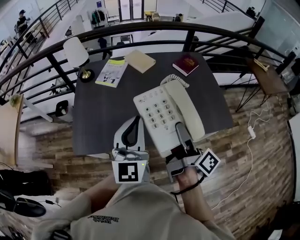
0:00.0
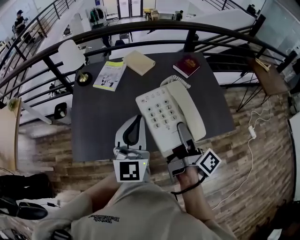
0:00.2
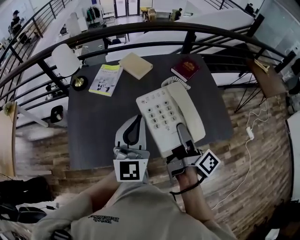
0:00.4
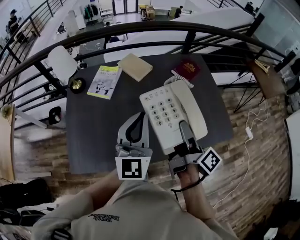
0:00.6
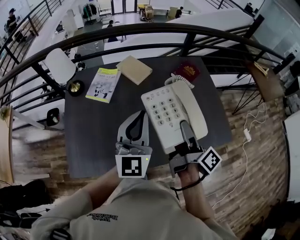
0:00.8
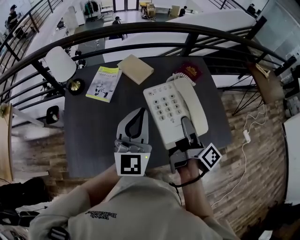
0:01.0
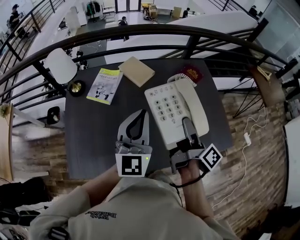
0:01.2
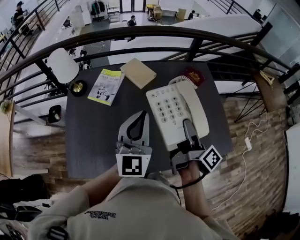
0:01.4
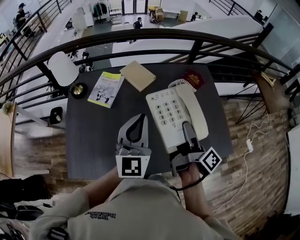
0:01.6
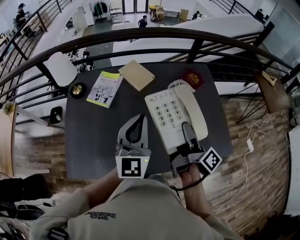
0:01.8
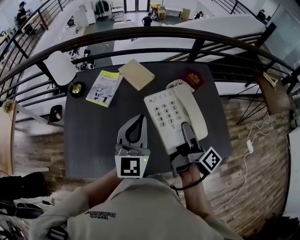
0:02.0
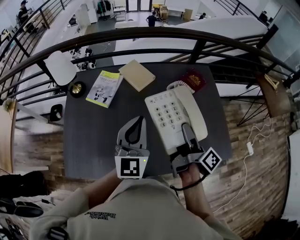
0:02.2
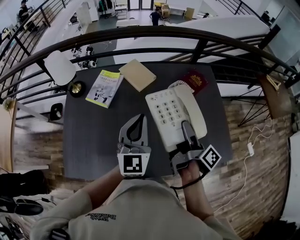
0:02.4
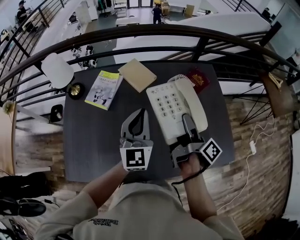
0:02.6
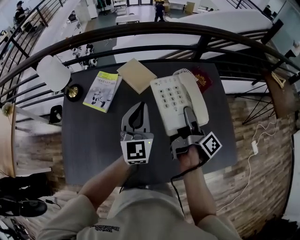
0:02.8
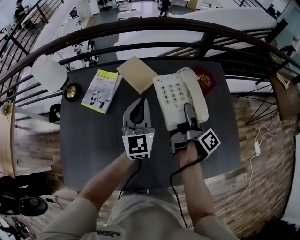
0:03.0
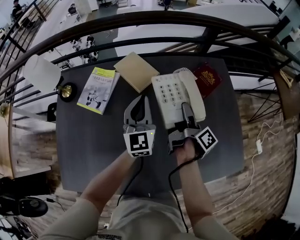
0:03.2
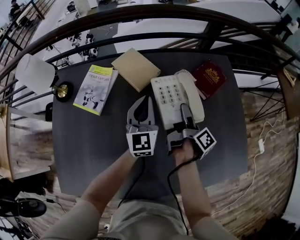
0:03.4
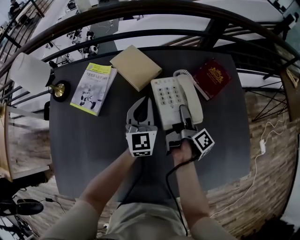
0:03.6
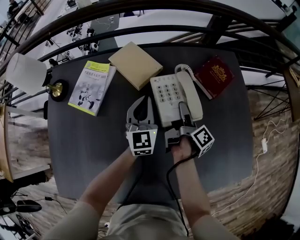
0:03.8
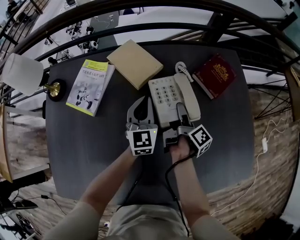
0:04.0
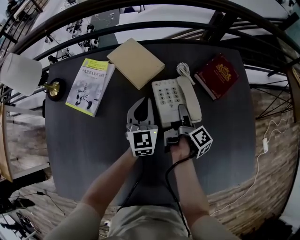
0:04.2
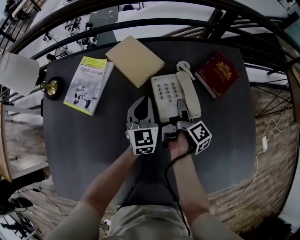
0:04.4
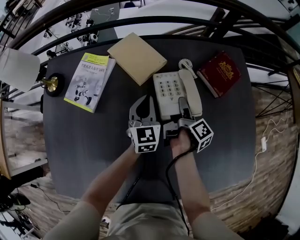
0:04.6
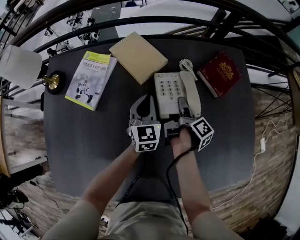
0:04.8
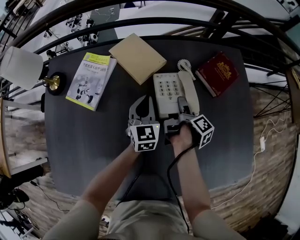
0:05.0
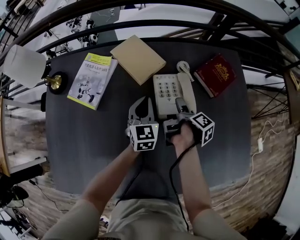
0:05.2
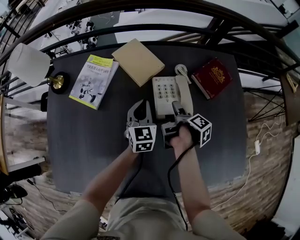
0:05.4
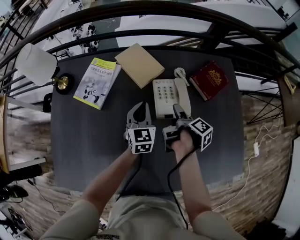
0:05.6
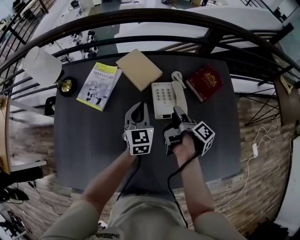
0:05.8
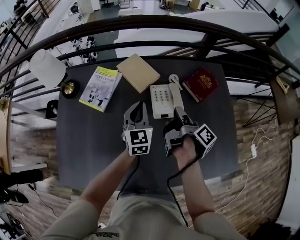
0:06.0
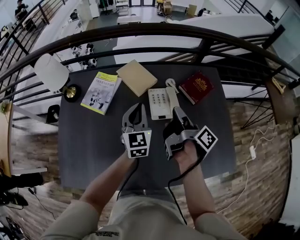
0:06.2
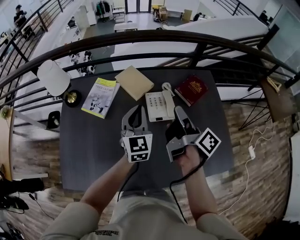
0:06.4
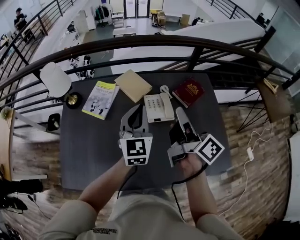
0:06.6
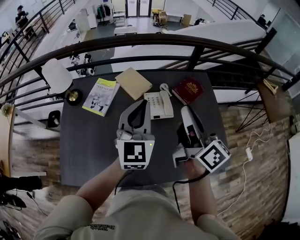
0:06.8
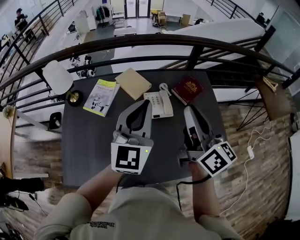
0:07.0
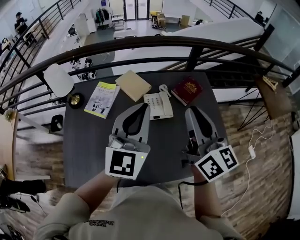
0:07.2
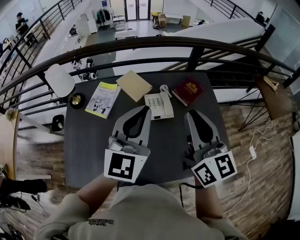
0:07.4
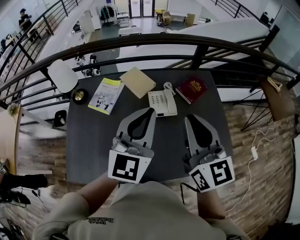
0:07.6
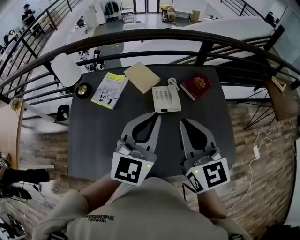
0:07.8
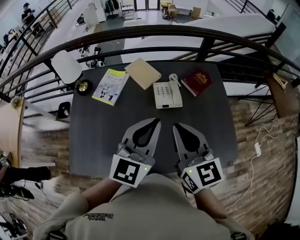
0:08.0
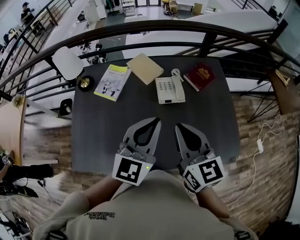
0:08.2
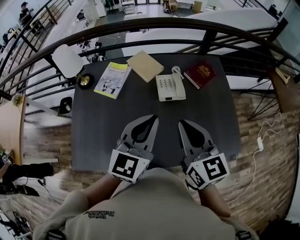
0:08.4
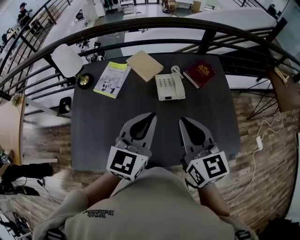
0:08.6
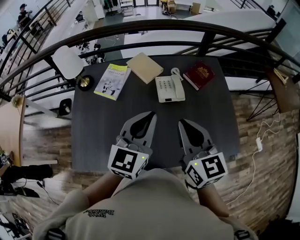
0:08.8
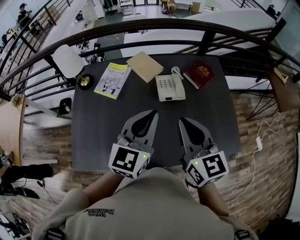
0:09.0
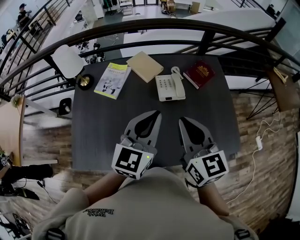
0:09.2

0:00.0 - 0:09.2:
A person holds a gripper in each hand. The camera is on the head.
0:00.0 - 0:01.6: The left gripper ends up roughly 25 cm from where it was.
0:01.6 - 0:03.0: The left gripper ends up roughly 20 cm from where it was.
0:03.0 - 0:04.6: The left gripper travels downward by about 25 cm.
0:04.6 - 0:06.2: The left gripper moves upward, about 20 cm.
0:06.2 - 0:07.6: The left gripper goes approximately 25 cm upward, and changes its angle by approximately 30 degrees.
0:07.6 - 0:09.2: The left gripper travels downward by roughly 10 cm.

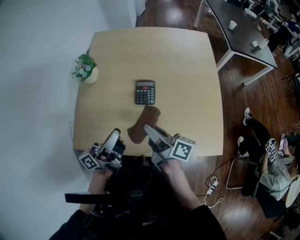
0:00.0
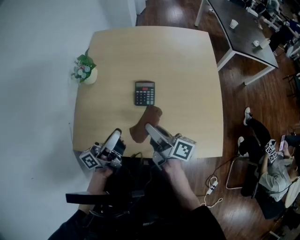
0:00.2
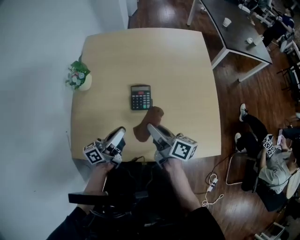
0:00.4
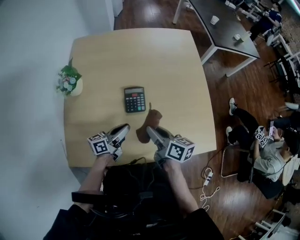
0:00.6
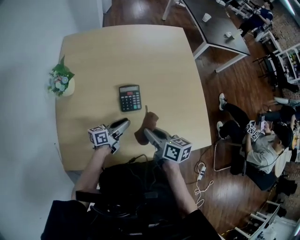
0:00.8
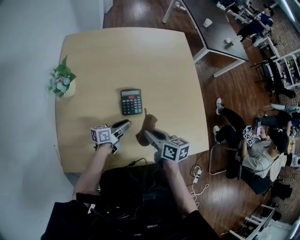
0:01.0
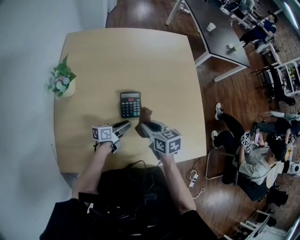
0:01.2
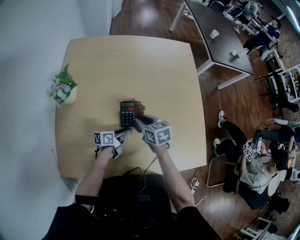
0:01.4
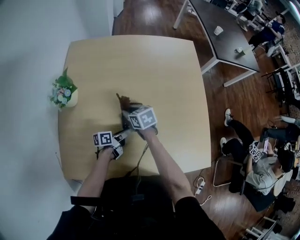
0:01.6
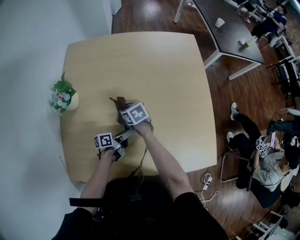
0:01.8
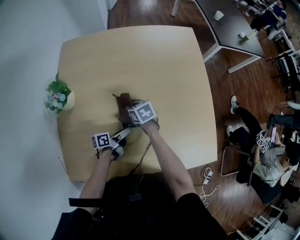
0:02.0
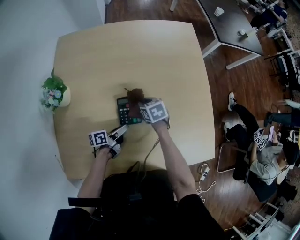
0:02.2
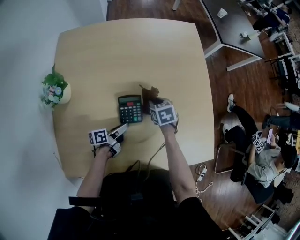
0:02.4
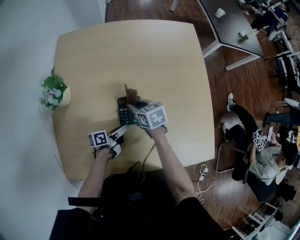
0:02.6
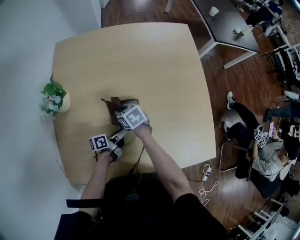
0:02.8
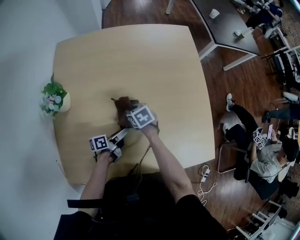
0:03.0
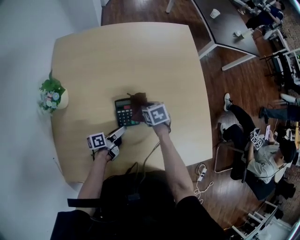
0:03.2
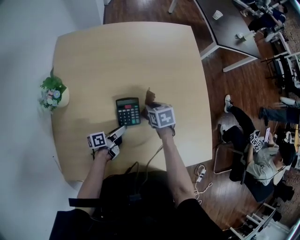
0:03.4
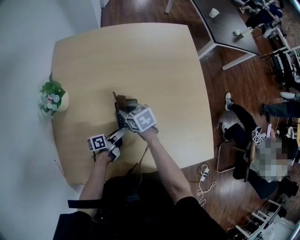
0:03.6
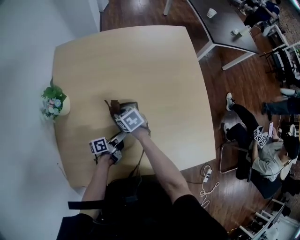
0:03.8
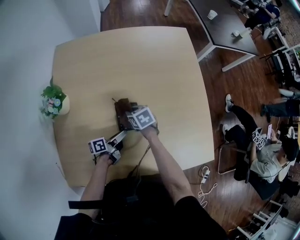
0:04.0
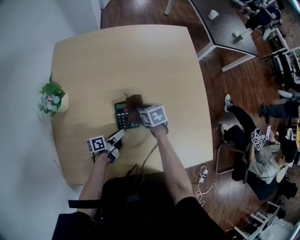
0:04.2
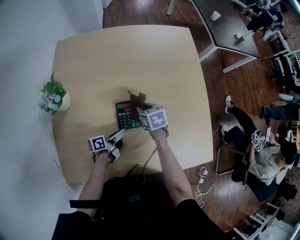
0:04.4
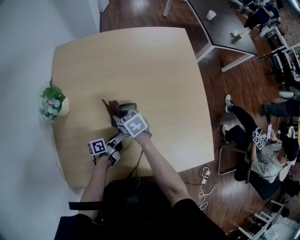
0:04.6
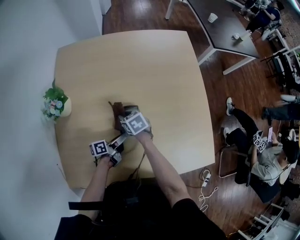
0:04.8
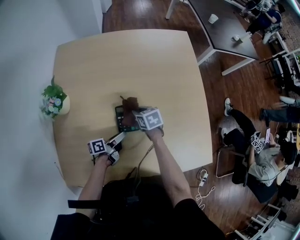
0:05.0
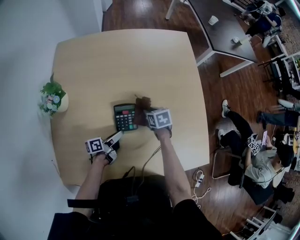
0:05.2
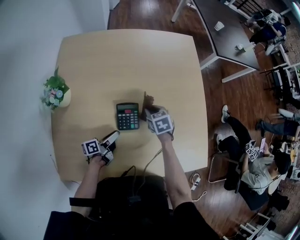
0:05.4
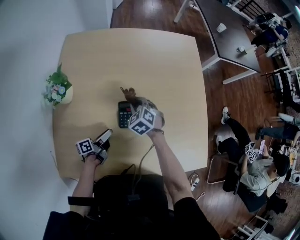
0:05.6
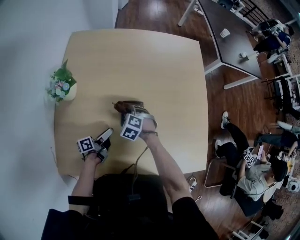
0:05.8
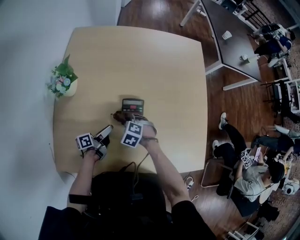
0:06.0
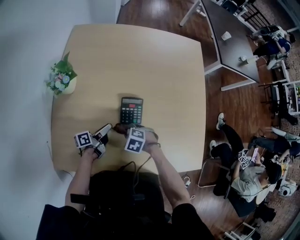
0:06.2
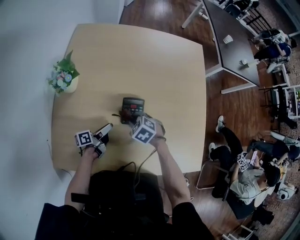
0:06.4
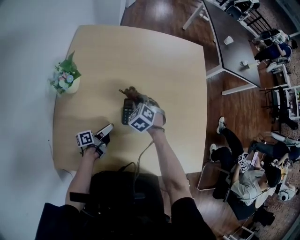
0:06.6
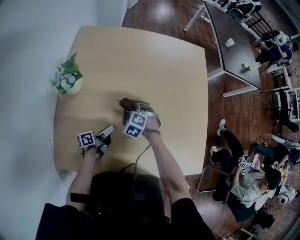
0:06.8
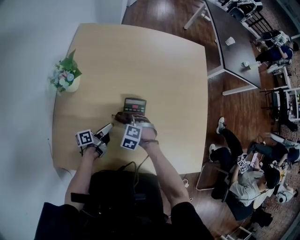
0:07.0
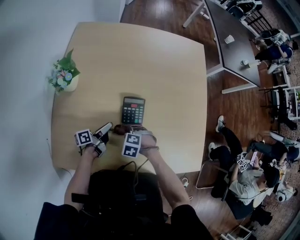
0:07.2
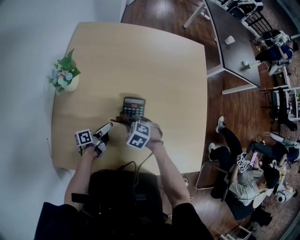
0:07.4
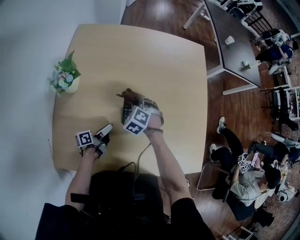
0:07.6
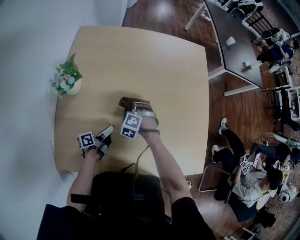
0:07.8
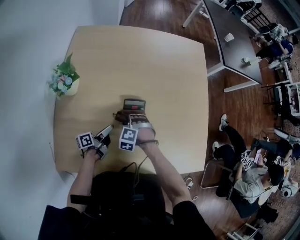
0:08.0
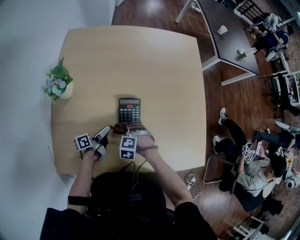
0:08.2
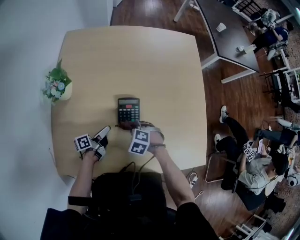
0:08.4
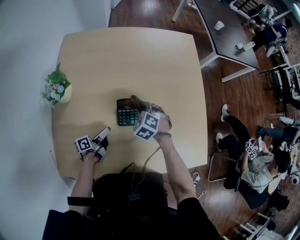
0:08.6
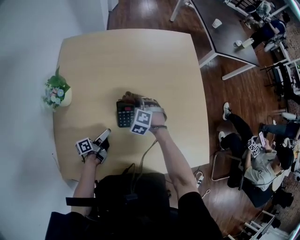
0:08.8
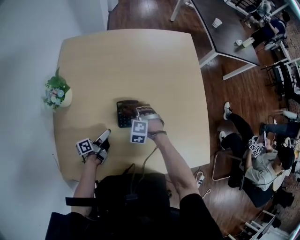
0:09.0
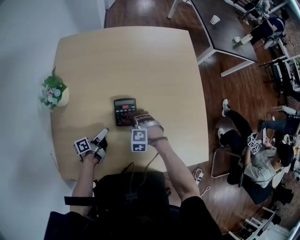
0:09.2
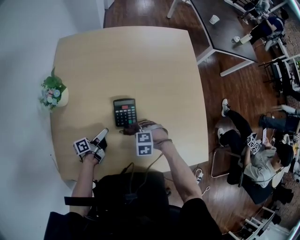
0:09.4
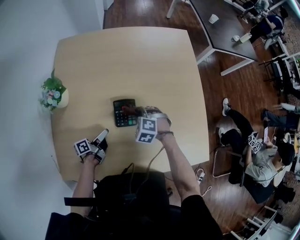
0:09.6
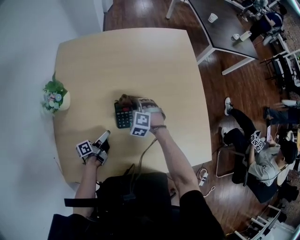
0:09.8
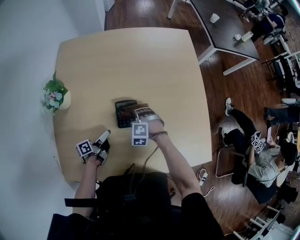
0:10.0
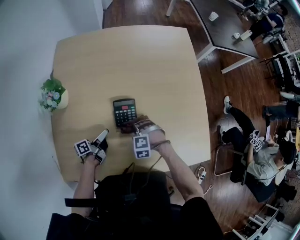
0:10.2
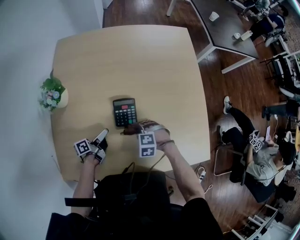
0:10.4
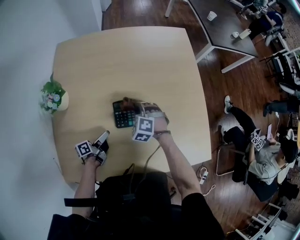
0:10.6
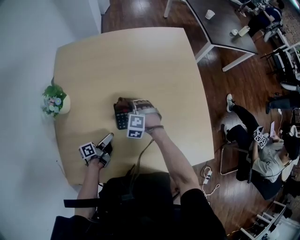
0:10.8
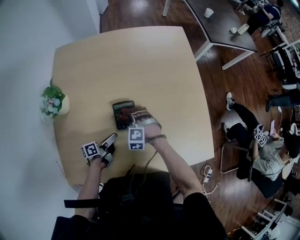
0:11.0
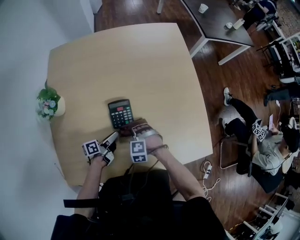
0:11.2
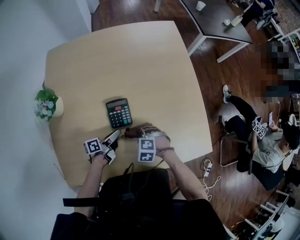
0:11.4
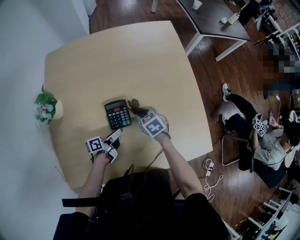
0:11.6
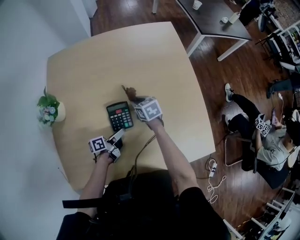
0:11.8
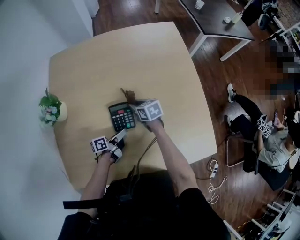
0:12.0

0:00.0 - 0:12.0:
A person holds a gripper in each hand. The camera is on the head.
0:00.0 - 0:01.6: The right gripper ends up about 30 cm from where it was, and angles its fingers downward, by roughly 40 degrees.
0:01.6 - 0:03.0: The right gripper goes up and down, roughly 5 cm each way, reversing 2 times.
0:04.4 - 0:06.0: The right gripper shifts by roughly 15 cm, and rotates around the line of its fingers by some 60 degrees, counterclockwise from behind.
0:06.0 - 0:07.6: The right gripper swings up and down, some 10 cm each way, with 2 reversals.
0:07.6 - 0:09.0: The right gripper goes up and down, about 10 cm each way, reversing 2 times.
0:09.0 - 0:10.4: The right gripper changes place by about 10 cm.
0:10.4 - 0:12.0: The right gripper goes up and down, some 5 cm each way, reversing 2 times, and twists some 80 degrees clockwise, seen from behind.

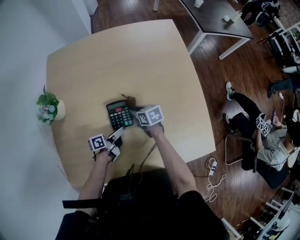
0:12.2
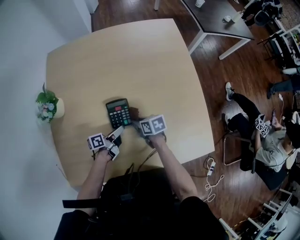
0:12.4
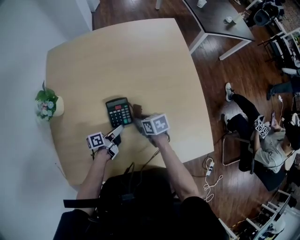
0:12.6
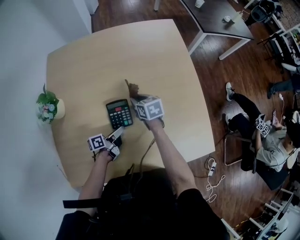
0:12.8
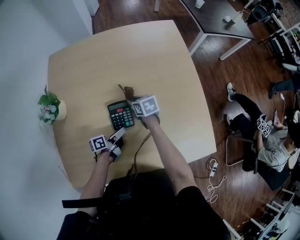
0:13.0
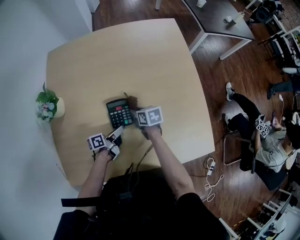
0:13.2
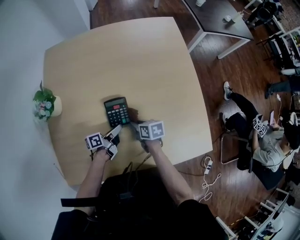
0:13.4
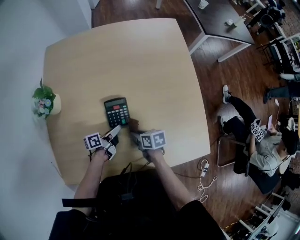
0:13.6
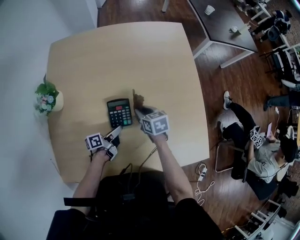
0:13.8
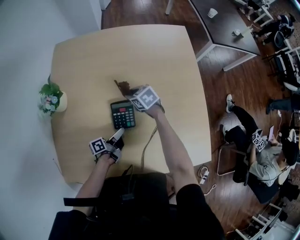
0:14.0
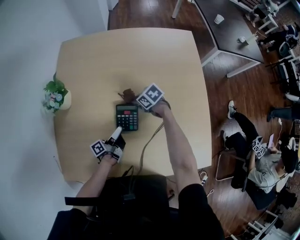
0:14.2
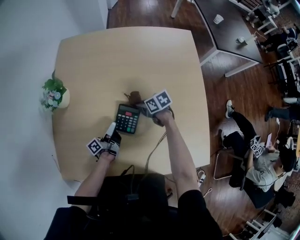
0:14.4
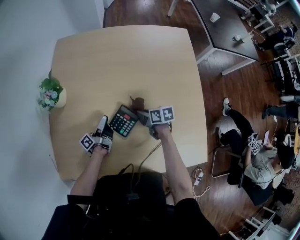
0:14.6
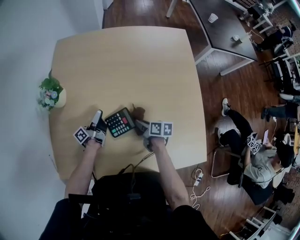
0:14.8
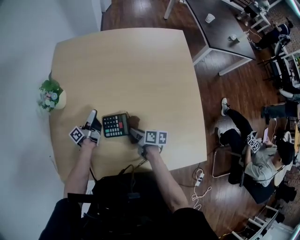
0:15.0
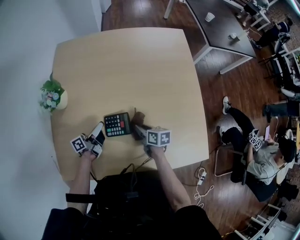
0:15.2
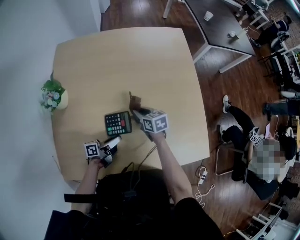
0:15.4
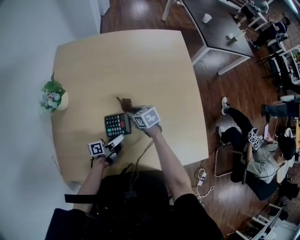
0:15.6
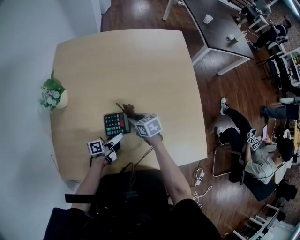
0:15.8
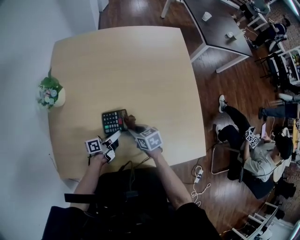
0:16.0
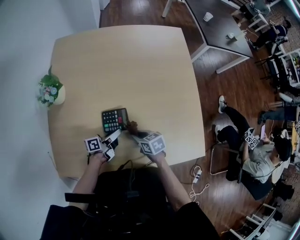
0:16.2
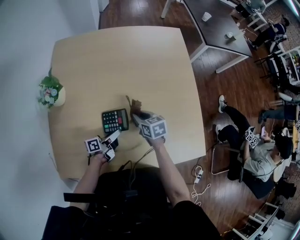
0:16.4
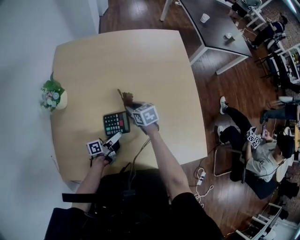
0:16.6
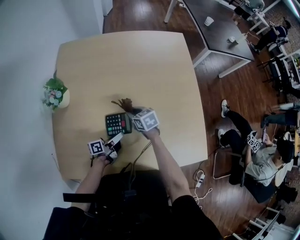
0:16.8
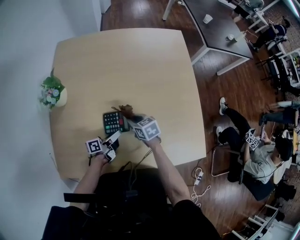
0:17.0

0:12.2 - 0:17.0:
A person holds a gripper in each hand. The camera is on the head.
0:12.2 - 0:13.8: The right gripper goes up and down, approximately 5 cm each way, reversing 2 times.
